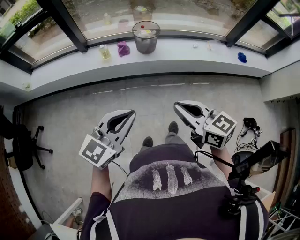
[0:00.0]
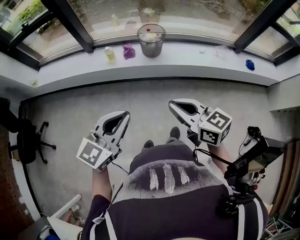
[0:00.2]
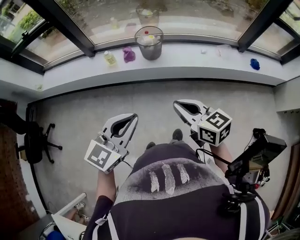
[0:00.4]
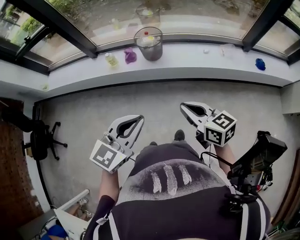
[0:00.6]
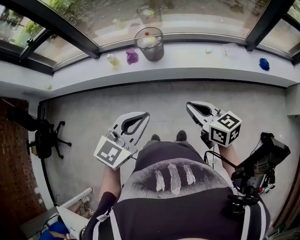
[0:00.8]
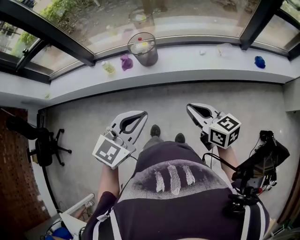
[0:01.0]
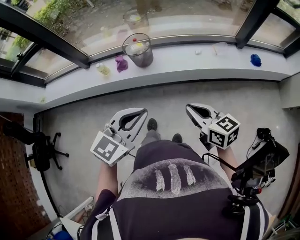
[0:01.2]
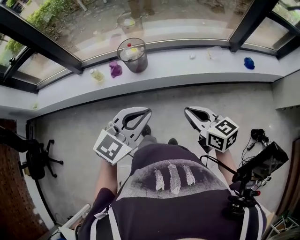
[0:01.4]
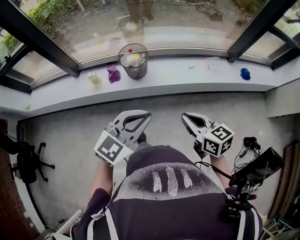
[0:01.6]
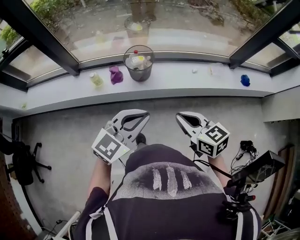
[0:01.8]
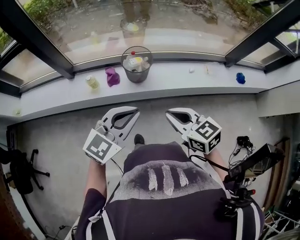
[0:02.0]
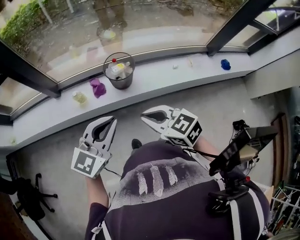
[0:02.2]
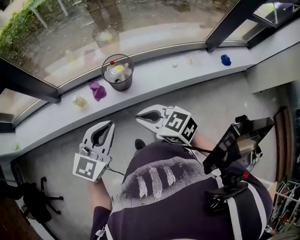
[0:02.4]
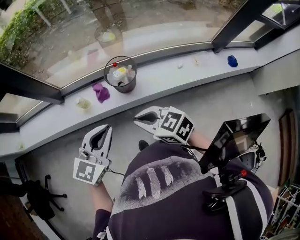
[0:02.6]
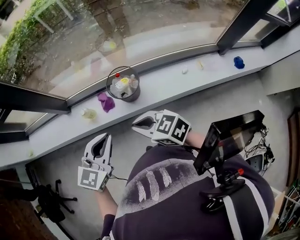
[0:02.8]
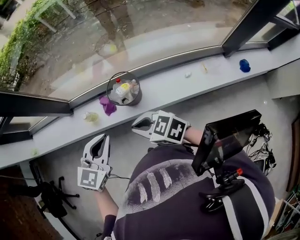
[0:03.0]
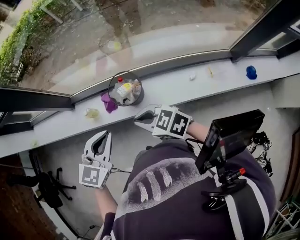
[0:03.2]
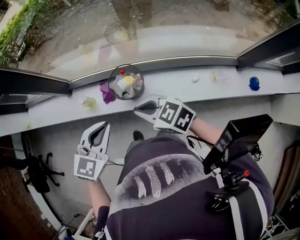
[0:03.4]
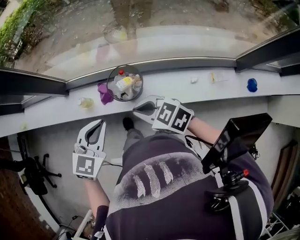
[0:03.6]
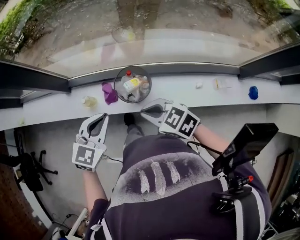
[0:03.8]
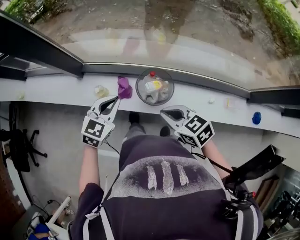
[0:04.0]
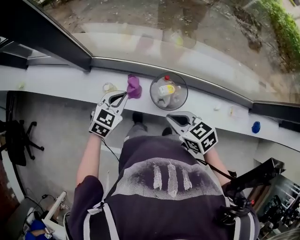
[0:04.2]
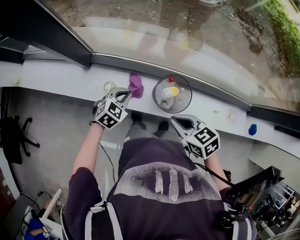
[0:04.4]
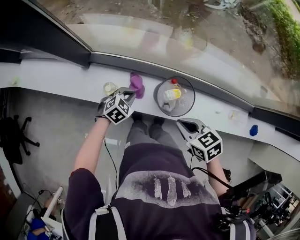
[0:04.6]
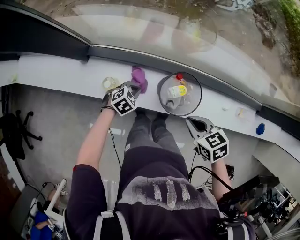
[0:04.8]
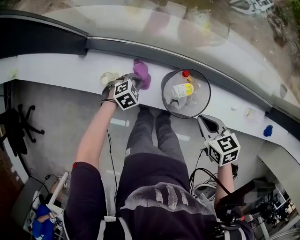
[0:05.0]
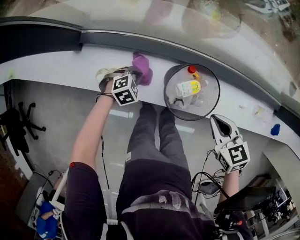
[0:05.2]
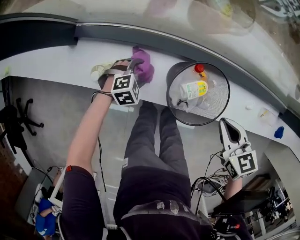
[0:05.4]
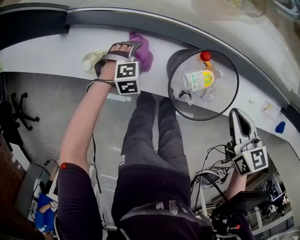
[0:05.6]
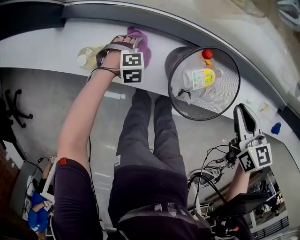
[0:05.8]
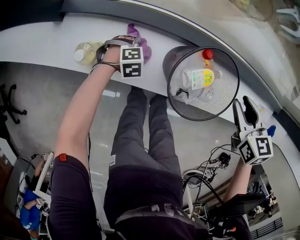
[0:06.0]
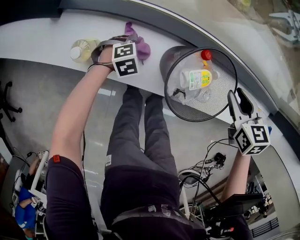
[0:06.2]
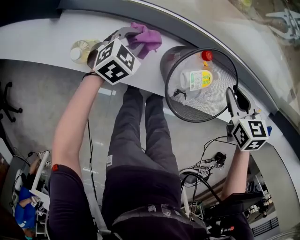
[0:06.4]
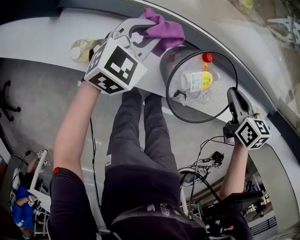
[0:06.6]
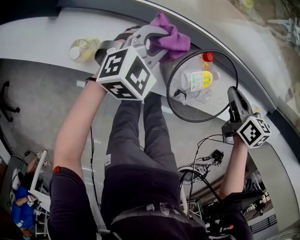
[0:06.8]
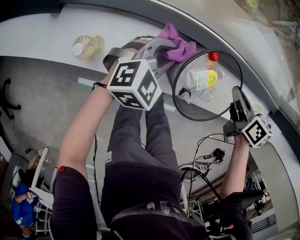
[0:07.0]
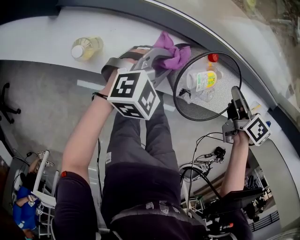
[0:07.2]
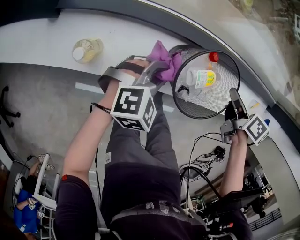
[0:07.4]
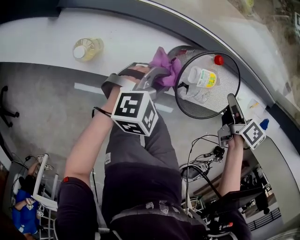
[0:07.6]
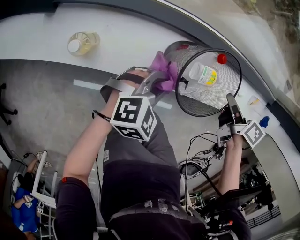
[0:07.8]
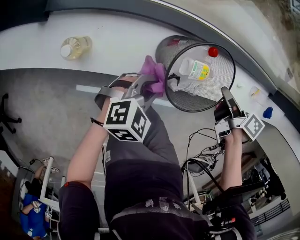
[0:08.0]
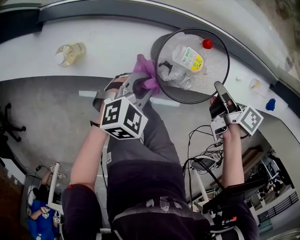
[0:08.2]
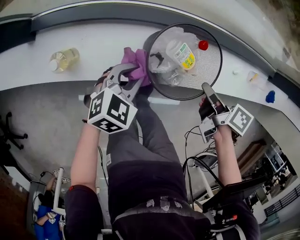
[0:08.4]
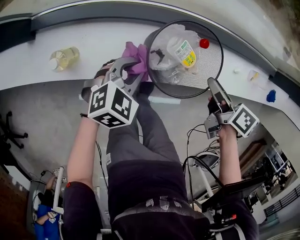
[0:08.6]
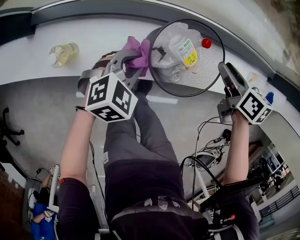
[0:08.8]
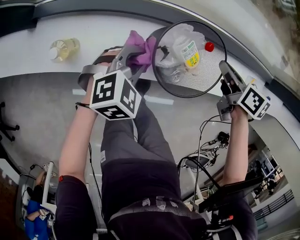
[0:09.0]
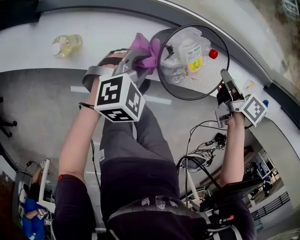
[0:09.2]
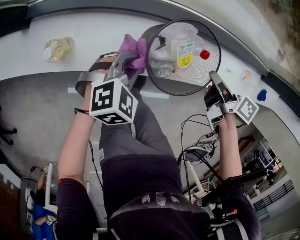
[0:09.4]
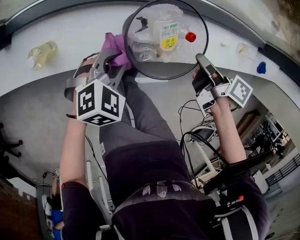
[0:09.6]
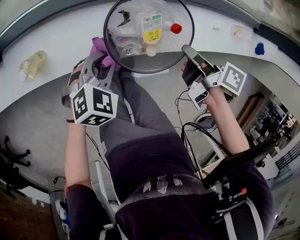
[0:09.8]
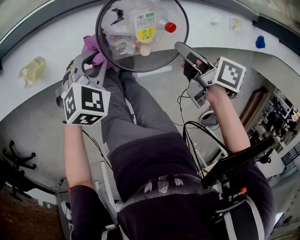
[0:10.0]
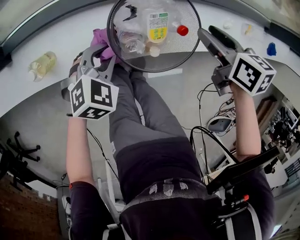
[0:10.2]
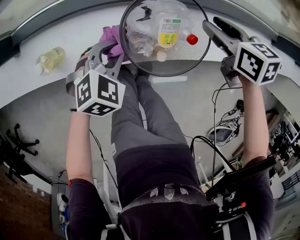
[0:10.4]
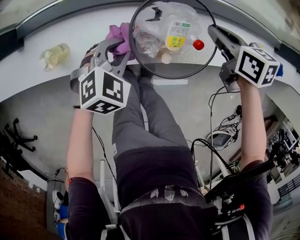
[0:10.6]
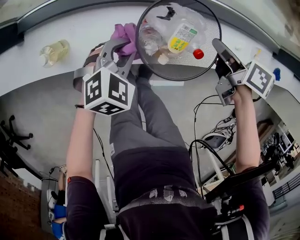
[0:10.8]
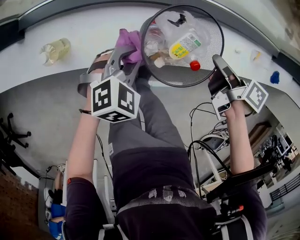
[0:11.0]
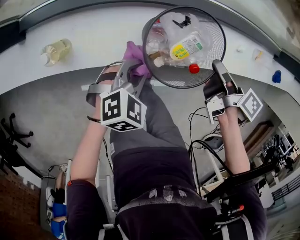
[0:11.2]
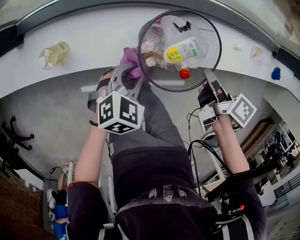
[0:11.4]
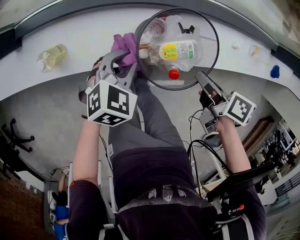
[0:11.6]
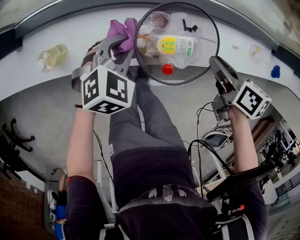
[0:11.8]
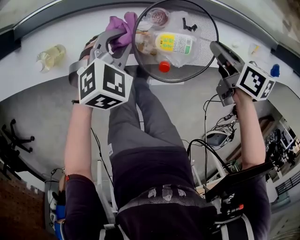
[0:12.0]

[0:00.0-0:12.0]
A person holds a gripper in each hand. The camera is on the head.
0:00.0 to 0:01.6: Both grippers travel together forward and to the right, some 30 cm.
0:01.6 to 0:03.0: The right gripper shifts by about 30 cm, and rotates some 40 degrees. Meanwhile the left gripper changes place by about 25 cm, and rotates approximately 20 degrees.
0:03.0 to 0:04.4: The left gripper is displaced forward and downward by about 35 cm. Meanwhile the right gripper travels forward and downward by some 20 cm, and changes its angle by approximately 20 degrees.
0:04.4 to 0:06.0: The right gripper shifts by about 30 cm, turns by about 20 degrees, and opens its fingers; the left gripper travels downward by some 35 cm, tips its fingers downward by roughly 30 degrees, and opens its fingers.
0:06.0 to 0:07.6: The right gripper twists some 40 degrees clockwise, seen from behind, and closes. Meanwhile the left gripper shifts some 20 cm upward, and angles its fingers upward, by roughly 30 degrees.
0:07.6 to 0:09.0: The right gripper opens, then closes once more.
0:09.0 to 0:10.4: The right gripper reaches approximately 10 cm backward, then returns, and opens its fingers.
0:10.4 to 0:12.0: The right gripper goes backward and returns, some 10 cm each way, changes its angle by roughly 20 degrees, and closes; the left gripper moves about 5 cm.

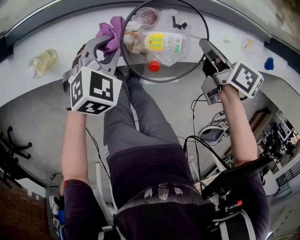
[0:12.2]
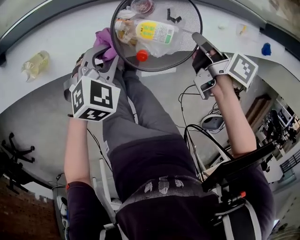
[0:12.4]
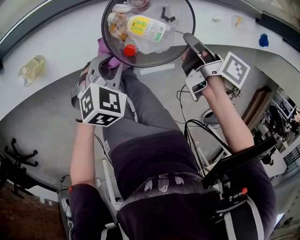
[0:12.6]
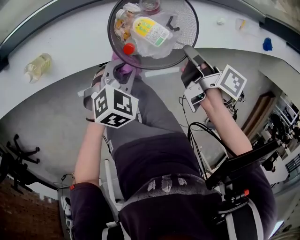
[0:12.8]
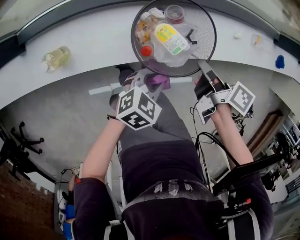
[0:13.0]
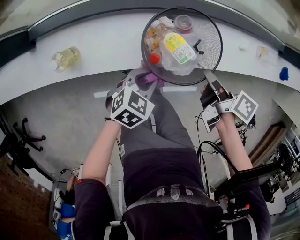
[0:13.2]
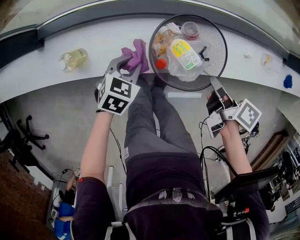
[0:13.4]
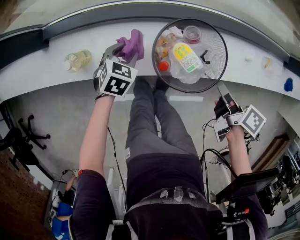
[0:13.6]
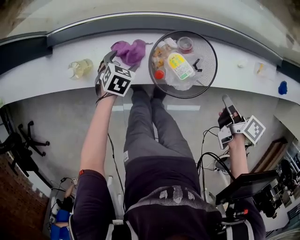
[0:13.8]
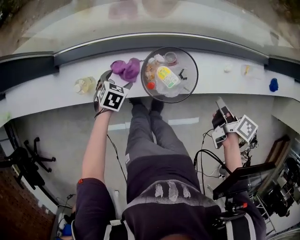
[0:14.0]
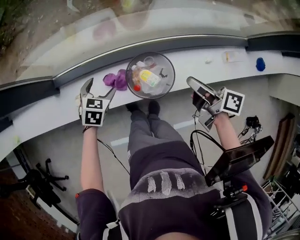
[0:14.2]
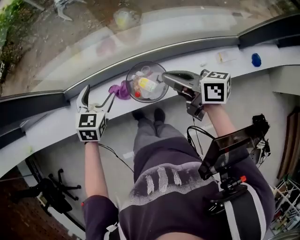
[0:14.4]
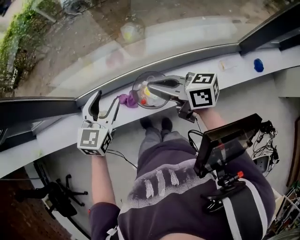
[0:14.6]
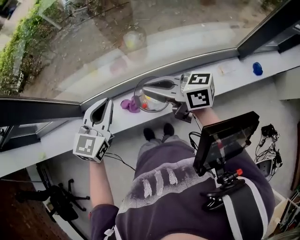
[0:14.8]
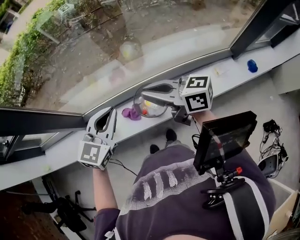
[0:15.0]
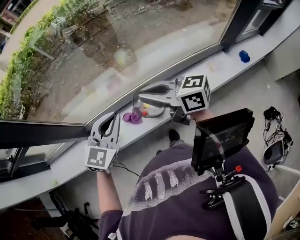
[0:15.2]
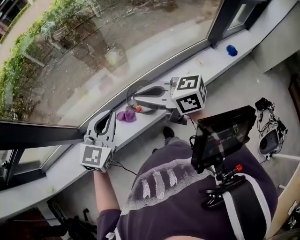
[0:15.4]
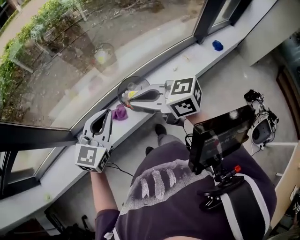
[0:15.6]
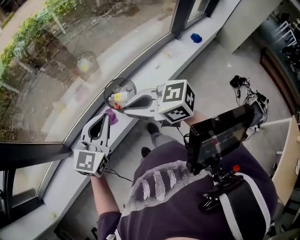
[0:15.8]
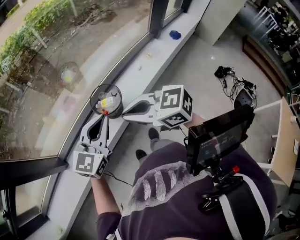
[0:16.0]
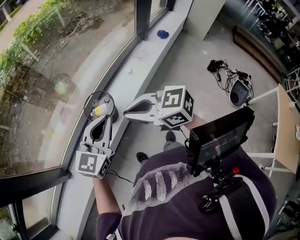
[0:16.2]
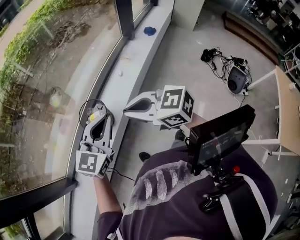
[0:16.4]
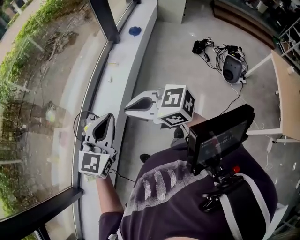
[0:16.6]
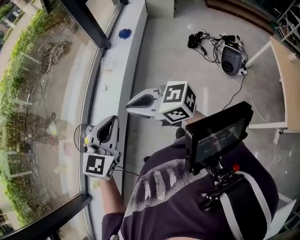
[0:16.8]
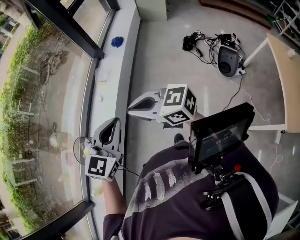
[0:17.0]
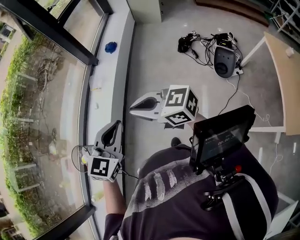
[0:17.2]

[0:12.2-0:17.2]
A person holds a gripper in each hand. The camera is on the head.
0:12.2 to 0:13.8: The right gripper is displaced to the right and backward by approximately 15 cm, and swivels some 20 degrees; the left gripper is displaced downward and to the left by roughly 10 cm, swivels about 20 degrees, and opens its fingers.
0:13.8 to 0:15.6: The left gripper heads upward, covering approximately 50 cm, points its fingers about 50 degrees further upward, and closes up. Meanwhile the right gripper is displaced upward and to the left by about 50 cm, and points its fingers about 40 degrees further upward.
0:15.6 to 0:17.2: Both grippers are carried approximately 50 cm. The right gripper rotates some 40 degrees. Meanwhile the left gripper swivels approximately 40 degrees.

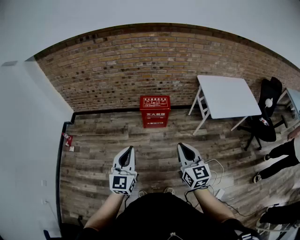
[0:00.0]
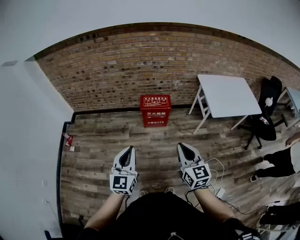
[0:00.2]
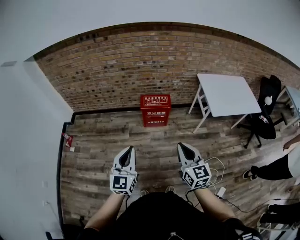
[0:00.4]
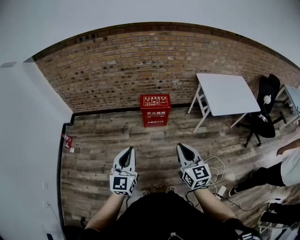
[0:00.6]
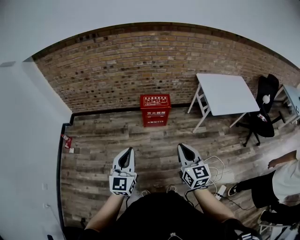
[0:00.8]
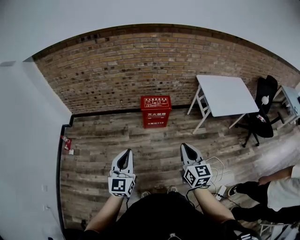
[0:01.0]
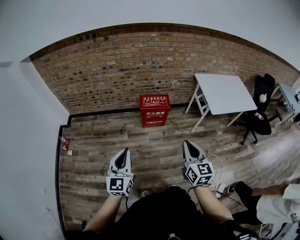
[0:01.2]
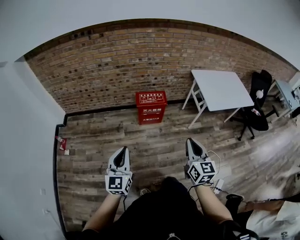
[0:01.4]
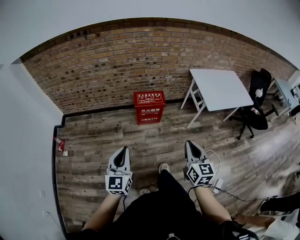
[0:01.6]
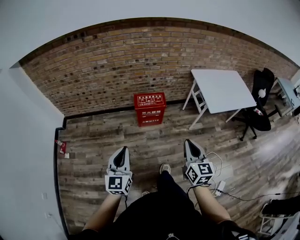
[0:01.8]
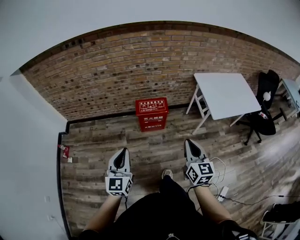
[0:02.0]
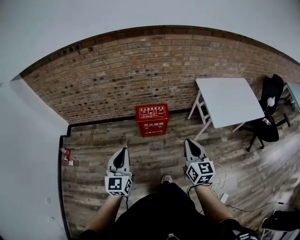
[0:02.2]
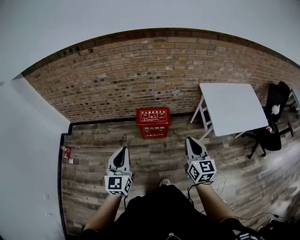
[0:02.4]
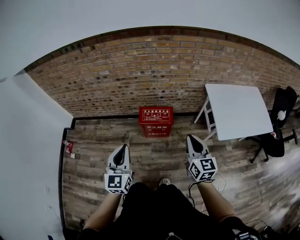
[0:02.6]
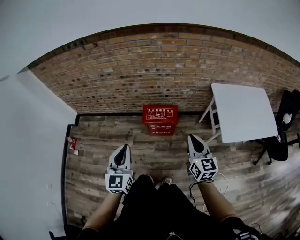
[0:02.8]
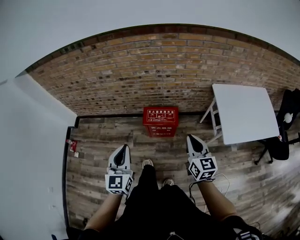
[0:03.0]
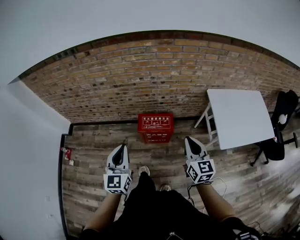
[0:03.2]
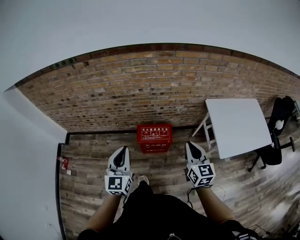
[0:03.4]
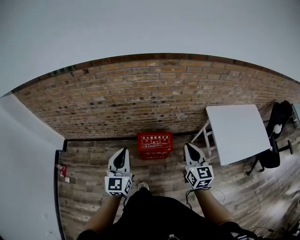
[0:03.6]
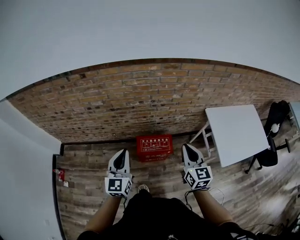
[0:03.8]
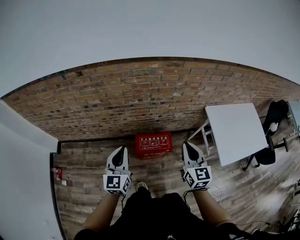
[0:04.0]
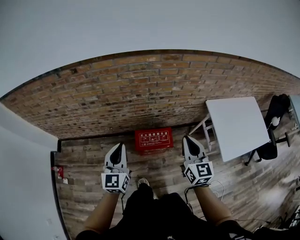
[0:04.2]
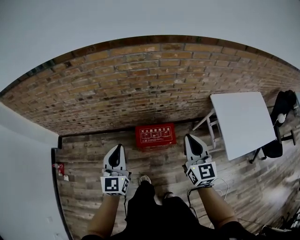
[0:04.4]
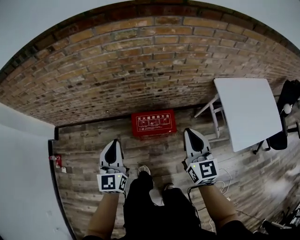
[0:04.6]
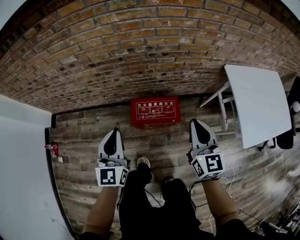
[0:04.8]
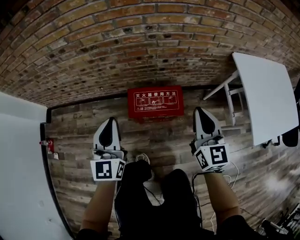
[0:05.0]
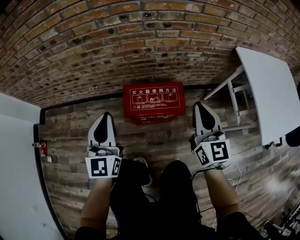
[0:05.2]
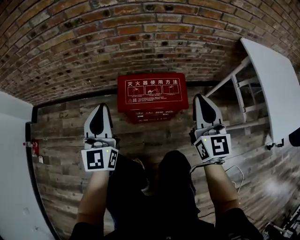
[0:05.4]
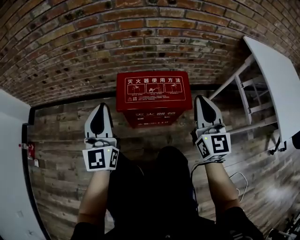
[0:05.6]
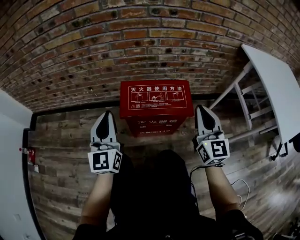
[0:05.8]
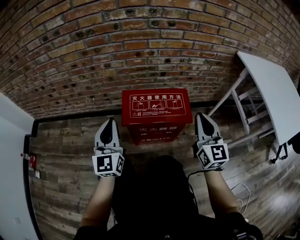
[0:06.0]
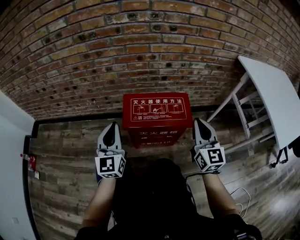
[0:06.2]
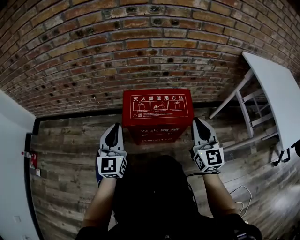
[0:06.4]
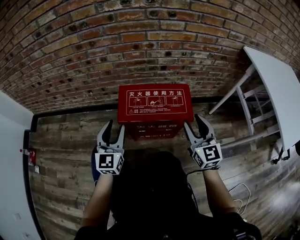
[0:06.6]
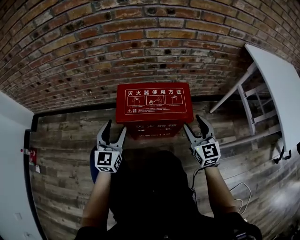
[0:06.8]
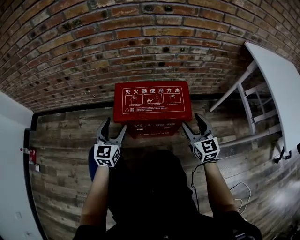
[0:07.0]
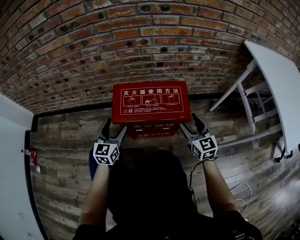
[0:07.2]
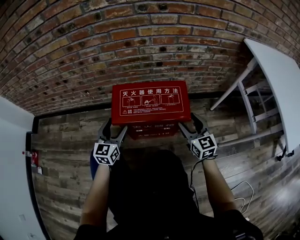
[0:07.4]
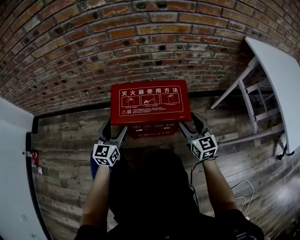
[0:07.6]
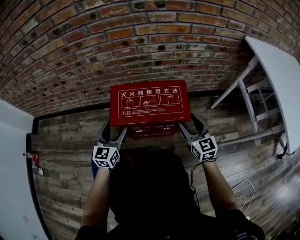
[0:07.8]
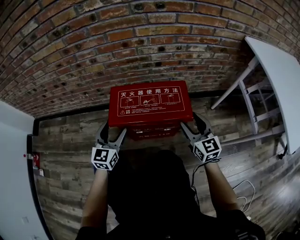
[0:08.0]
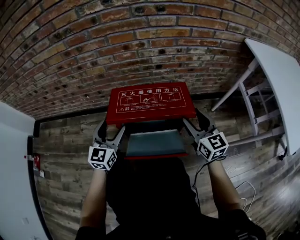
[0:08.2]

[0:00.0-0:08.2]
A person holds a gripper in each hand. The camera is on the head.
0:00.0 to 0:01.6: The left gripper is displaced to the left by some 10 cm.
0:01.6 to 0:03.2: The two grippers go roughly 35 cm forward.
0:03.2 to 0:05.0: The grippers both shift downward and forward by approximately 35 cm.
0:05.0 to 0:06.6: Both grippers move downward, about 35 cm. The right gripper opens. Meanwhile the left gripper opens.
0:06.6 to 0:08.2: The left gripper opens, while the right gripper travels downward and back again, some 10 cm each way.
